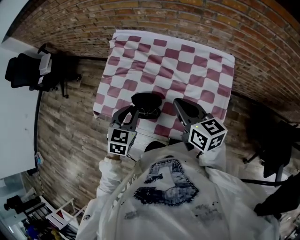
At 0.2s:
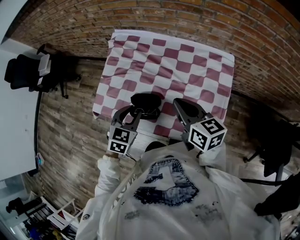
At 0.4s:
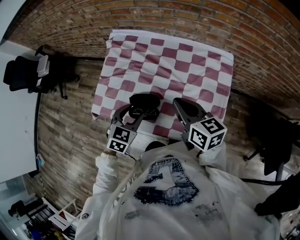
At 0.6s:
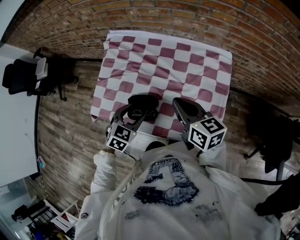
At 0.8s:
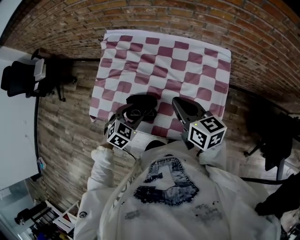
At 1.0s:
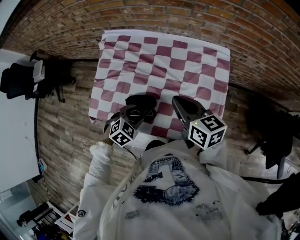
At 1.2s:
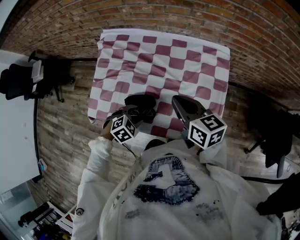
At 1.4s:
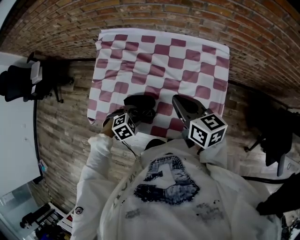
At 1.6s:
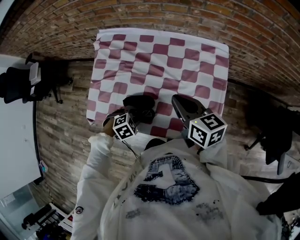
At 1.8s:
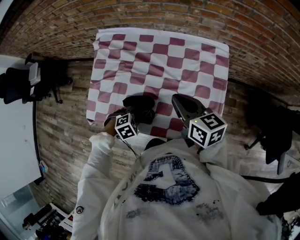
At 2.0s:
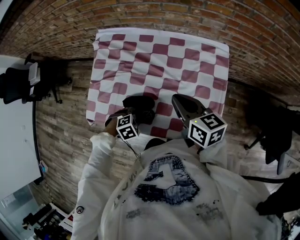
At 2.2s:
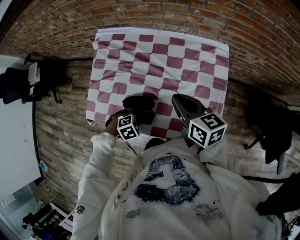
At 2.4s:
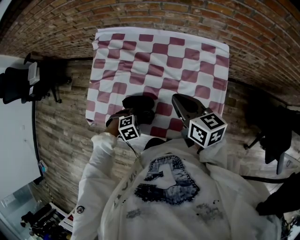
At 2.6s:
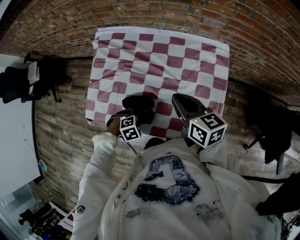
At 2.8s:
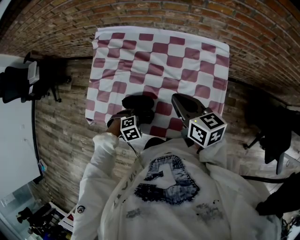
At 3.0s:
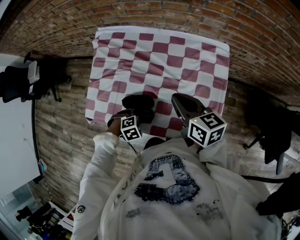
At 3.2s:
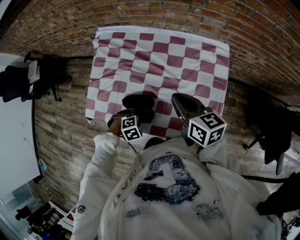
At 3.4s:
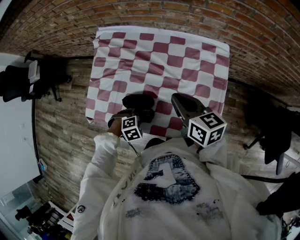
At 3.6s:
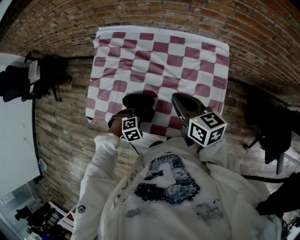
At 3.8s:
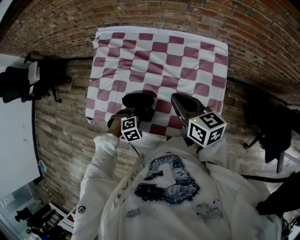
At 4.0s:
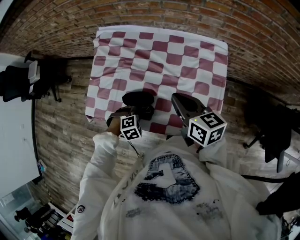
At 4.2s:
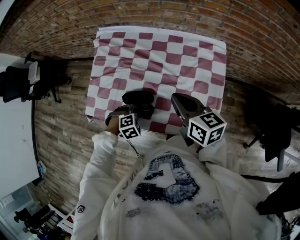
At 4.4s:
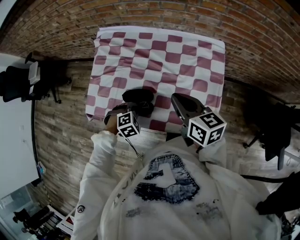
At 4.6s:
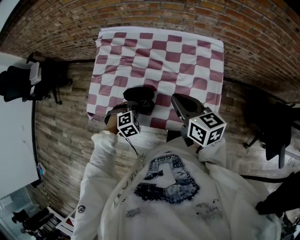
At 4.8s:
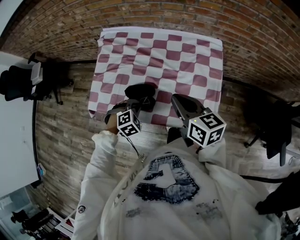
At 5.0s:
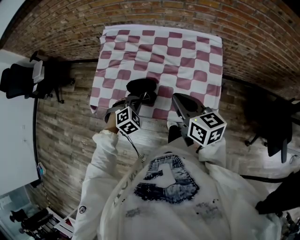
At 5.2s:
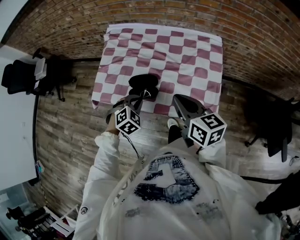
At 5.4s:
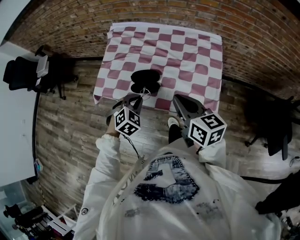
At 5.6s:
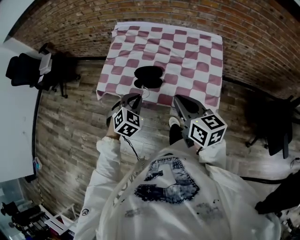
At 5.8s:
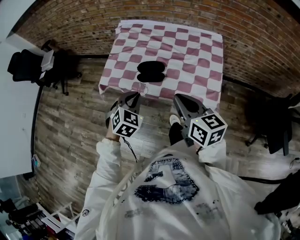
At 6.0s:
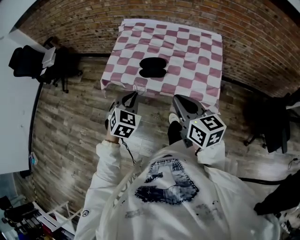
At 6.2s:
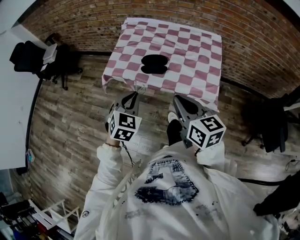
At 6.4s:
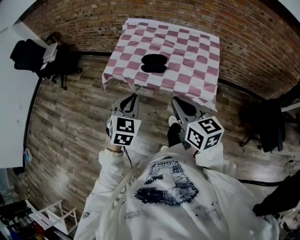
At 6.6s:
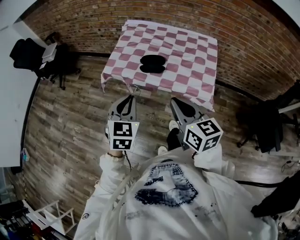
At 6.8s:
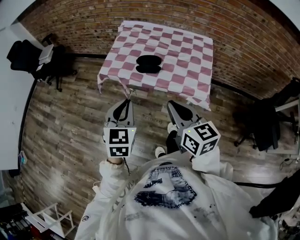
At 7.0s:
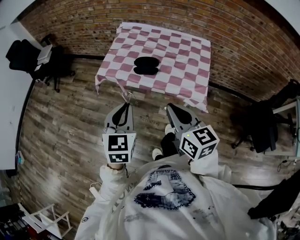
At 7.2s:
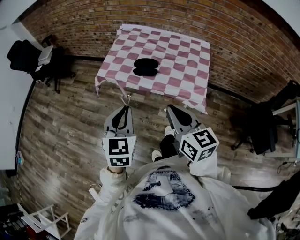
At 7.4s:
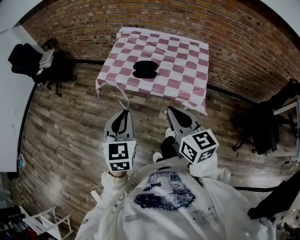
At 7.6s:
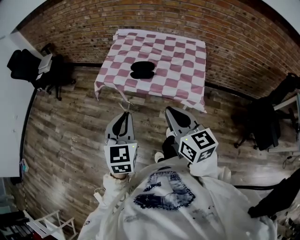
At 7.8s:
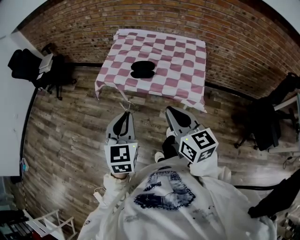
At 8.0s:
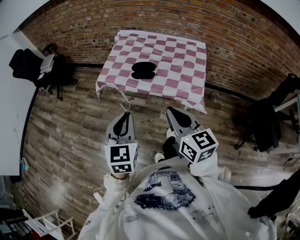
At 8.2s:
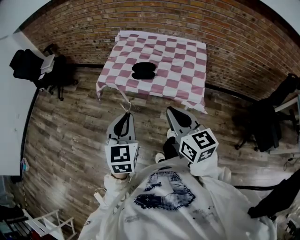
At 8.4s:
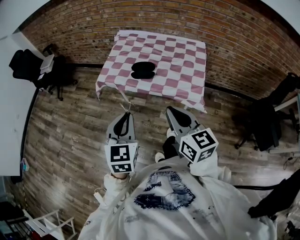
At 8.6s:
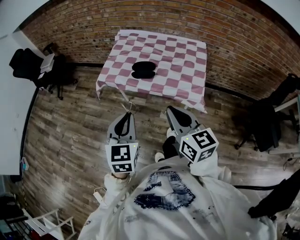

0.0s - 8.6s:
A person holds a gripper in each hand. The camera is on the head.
0.0s - 1.4s: The left gripper travels downward by some 15 cm, points its fingers roughly 30 degrees further downward, and opens its fingers.
1.4s - 2.8s: The left gripper closes.
2.8s - 4.4s: There are only small adjustments of the grippers.
4.4s - 5.8s: The right gripper shifts some 25 cm backward, while the left gripper is displaced upward and backward by some 25 cm, and tilts its fingers some 30 degrees upward.
5.8s - 7.2s: The left gripper heads backward and upward, covering approximately 20 cm, and swivels some 40 degrees. The right gripper shifts approximately 15 cm backward.
7.2s - 8.6s: The grippers stay close to where they were, moving slightly.

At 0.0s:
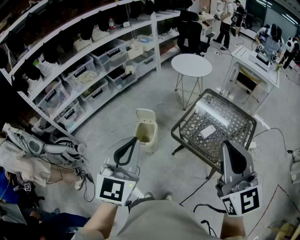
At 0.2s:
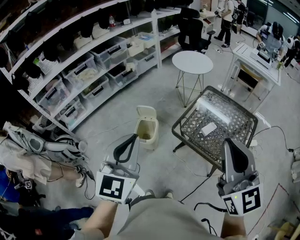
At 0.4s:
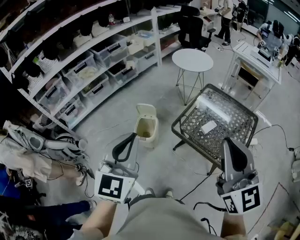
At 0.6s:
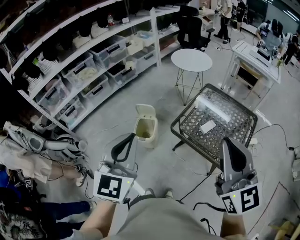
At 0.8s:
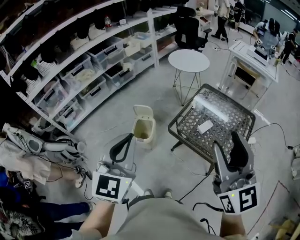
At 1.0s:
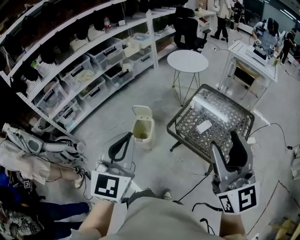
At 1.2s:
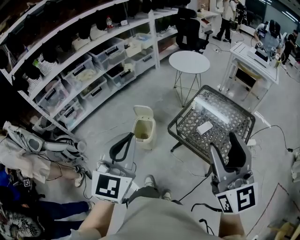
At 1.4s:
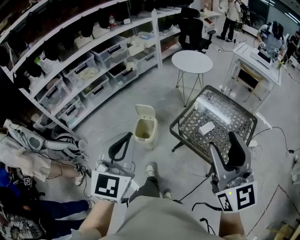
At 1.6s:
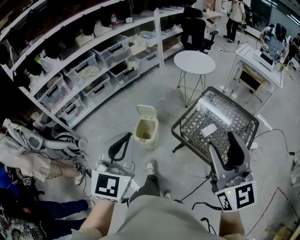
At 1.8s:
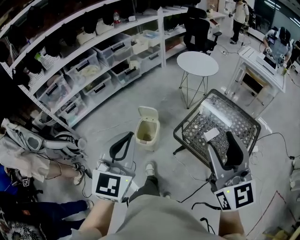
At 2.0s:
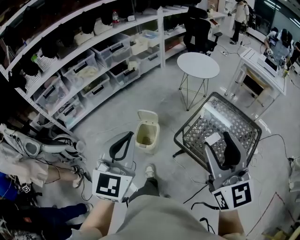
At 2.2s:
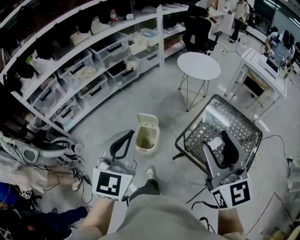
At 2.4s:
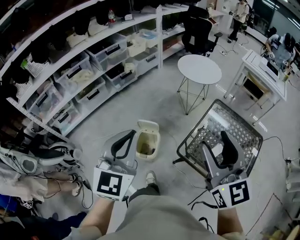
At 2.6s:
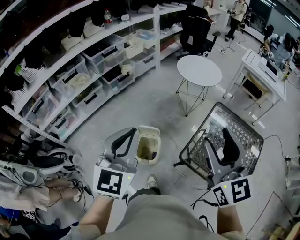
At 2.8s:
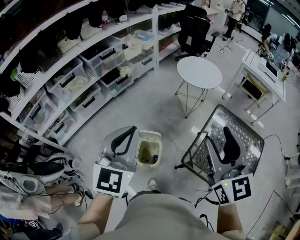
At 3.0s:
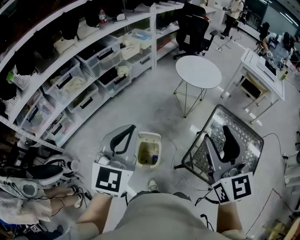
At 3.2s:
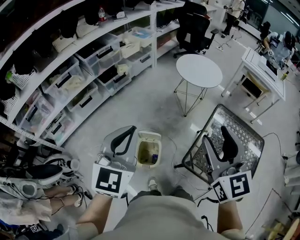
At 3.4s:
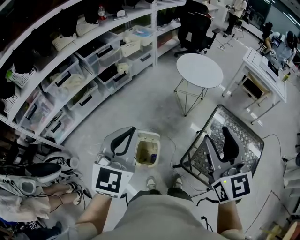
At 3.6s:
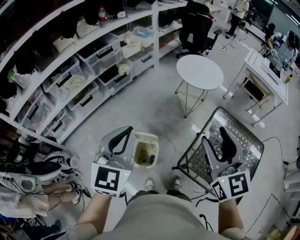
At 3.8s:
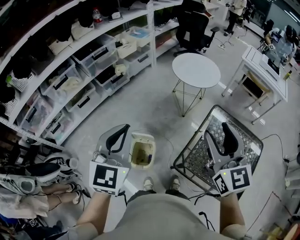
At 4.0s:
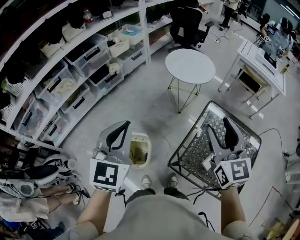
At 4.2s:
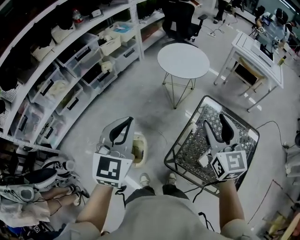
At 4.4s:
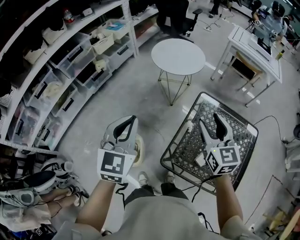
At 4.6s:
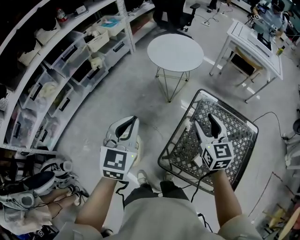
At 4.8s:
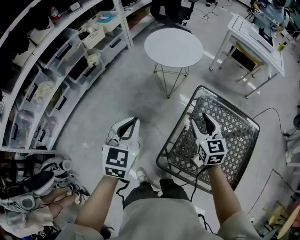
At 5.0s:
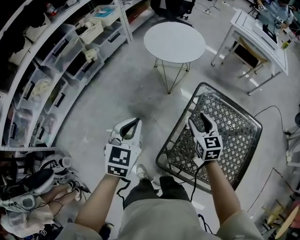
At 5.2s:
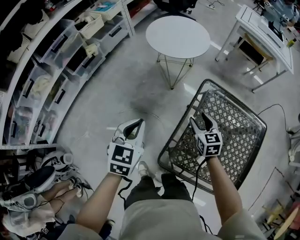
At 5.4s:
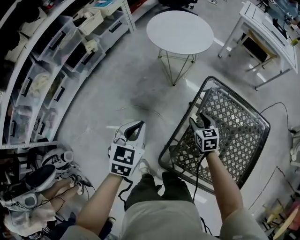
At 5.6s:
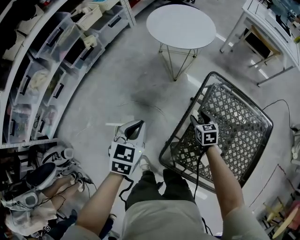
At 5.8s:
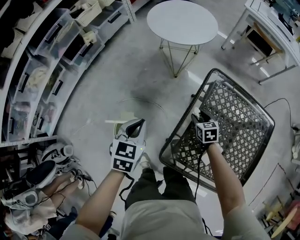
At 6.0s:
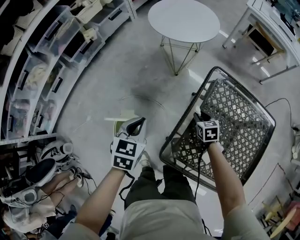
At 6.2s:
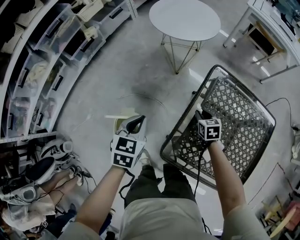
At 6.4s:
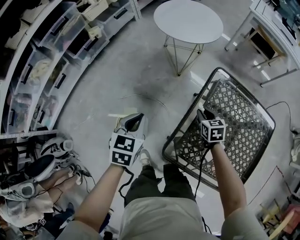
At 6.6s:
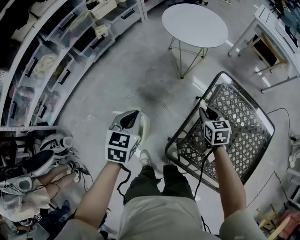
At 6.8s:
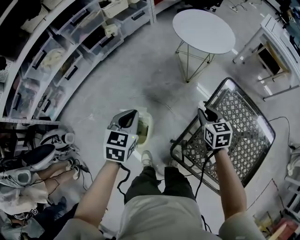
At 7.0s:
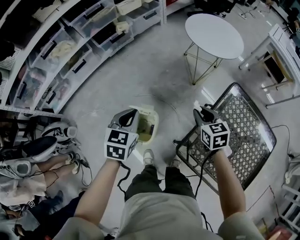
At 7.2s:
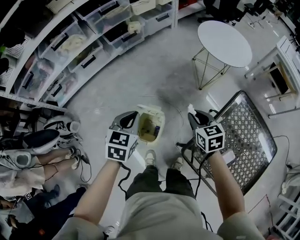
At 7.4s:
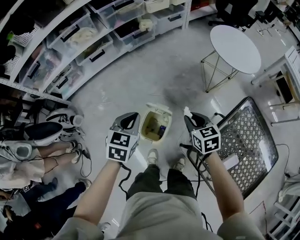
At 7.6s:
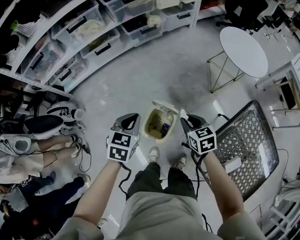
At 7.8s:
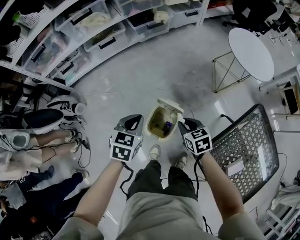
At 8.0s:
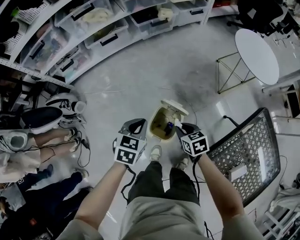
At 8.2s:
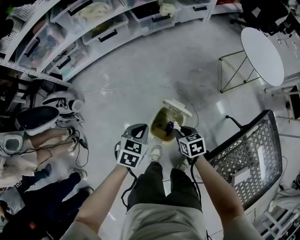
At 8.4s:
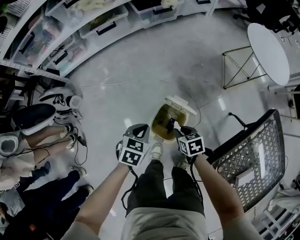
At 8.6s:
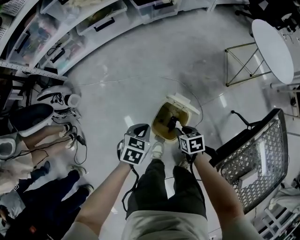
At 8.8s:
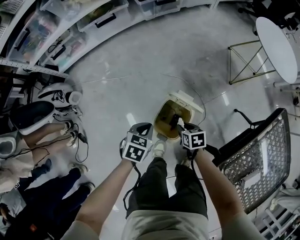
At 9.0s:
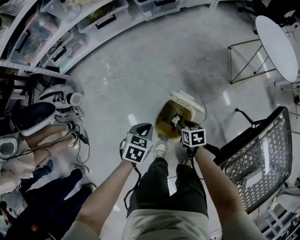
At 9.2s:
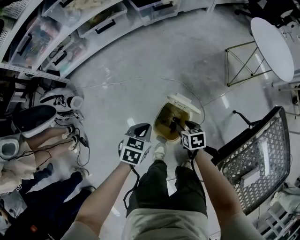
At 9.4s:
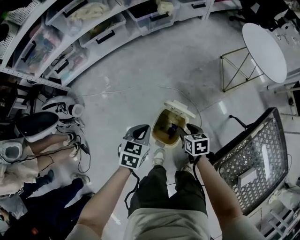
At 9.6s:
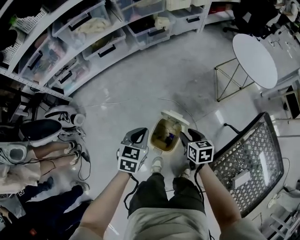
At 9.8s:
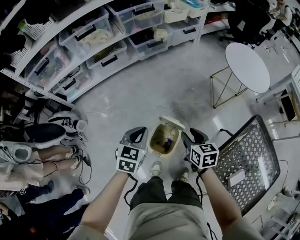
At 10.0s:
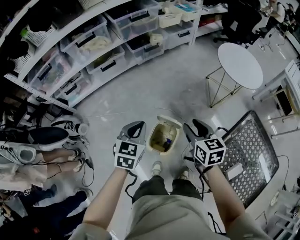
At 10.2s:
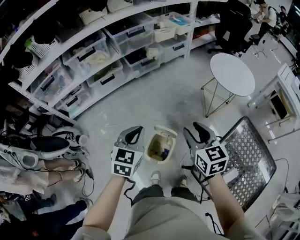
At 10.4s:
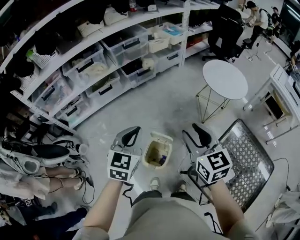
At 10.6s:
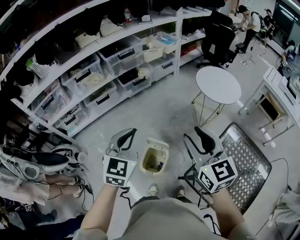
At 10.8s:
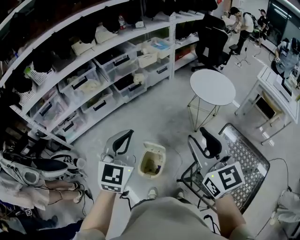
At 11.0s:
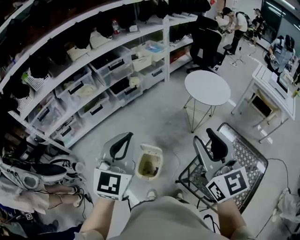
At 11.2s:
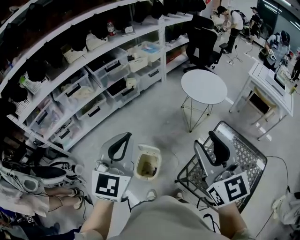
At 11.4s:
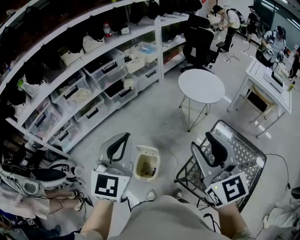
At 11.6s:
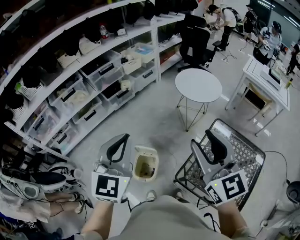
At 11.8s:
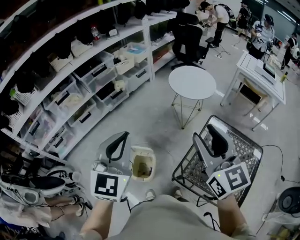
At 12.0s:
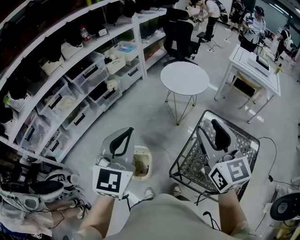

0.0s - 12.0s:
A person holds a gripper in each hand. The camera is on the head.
0.0s - 1.6s: The right gripper opens up.
1.6s - 3.0s: The left gripper moves forward, some 30 cm; the right gripper shifts some 35 cm forward and to the left.
3.0s - 4.4s: The left gripper goes approximately 20 cm to the right, forward and downward, while the right gripper shifts approximately 30 cm to the right, downward and forward.
4.4s - 6.0s: The left gripper moves downward, about 30 cm, and changes its angle by roughly 30 degrees; the right gripper moves downward, approximately 40 cm, and points its fingers roughly 40 degrees further downward.
6.0s - 7.6s: The right gripper shifts by some 40 cm, and changes its angle by some 40 degrees; the left gripper moves roughly 30 cm, and swivels about 20 degrees.
7.6s - 9.0s: The two grippers go about 30 cm downward. The right gripper rotates about 20 degrees.
9.0s - 10.4s: Both grippers travel together upward, approximately 50 cm. The left gripper angles its fingers upward, by some 30 degrees. The right gripper angles its fingers upward, by roughly 40 degrees.
10.4s - 12.0s: The right gripper heads to the right and upward, covering about 25 cm, and changes its angle by about 30 degrees; the left gripper shifts approximately 20 cm upward and to the right, and rotates approximately 20 degrees.

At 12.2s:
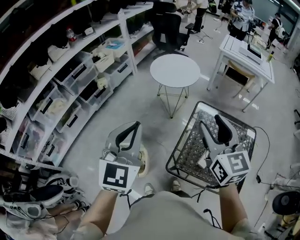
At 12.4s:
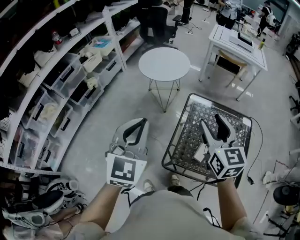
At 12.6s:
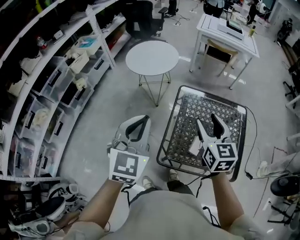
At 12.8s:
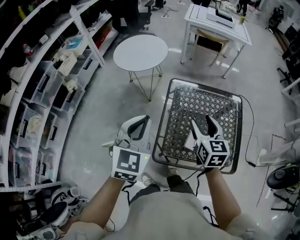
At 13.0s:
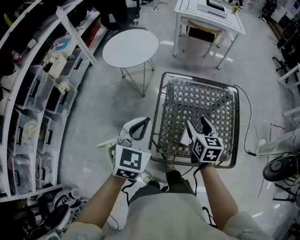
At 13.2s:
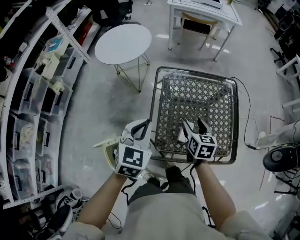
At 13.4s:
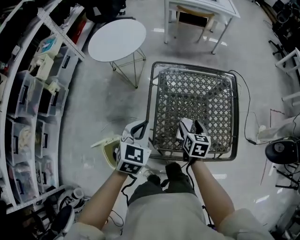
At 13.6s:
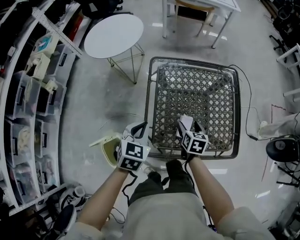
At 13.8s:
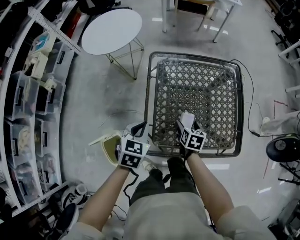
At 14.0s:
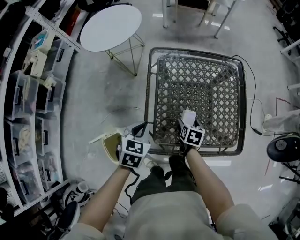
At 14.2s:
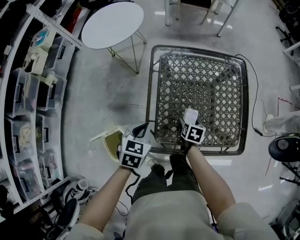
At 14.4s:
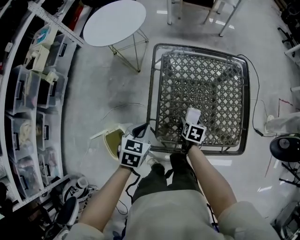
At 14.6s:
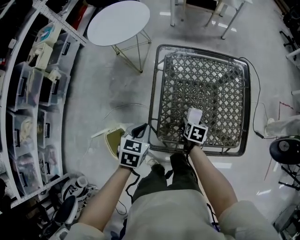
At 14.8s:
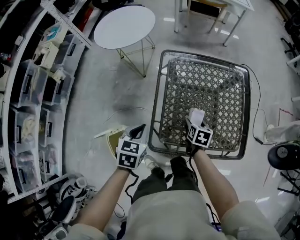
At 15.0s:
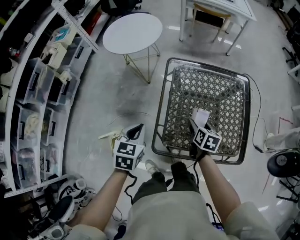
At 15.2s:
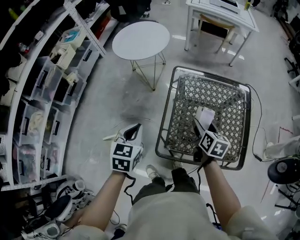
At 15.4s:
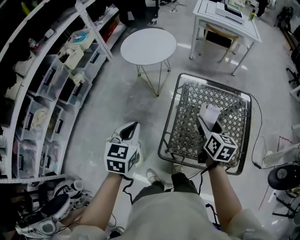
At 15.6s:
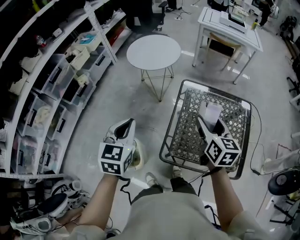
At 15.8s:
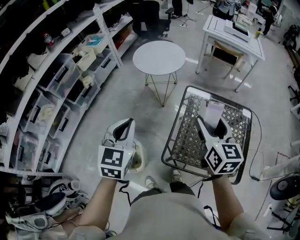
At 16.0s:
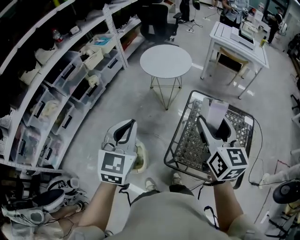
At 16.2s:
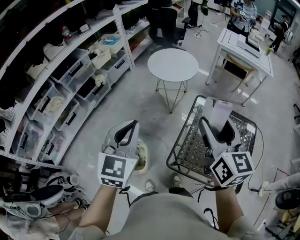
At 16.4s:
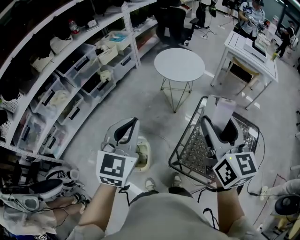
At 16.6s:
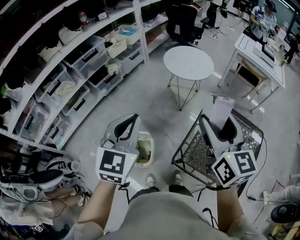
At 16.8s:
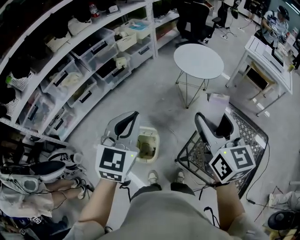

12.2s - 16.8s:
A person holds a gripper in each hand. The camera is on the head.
12.2s - 13.8s: The grippers both shift downward by approximately 40 cm. The right gripper points its fingers roughly 50 degrees further downward, and opens up; the left gripper points its fingers approximately 40 degrees further downward.
13.8s - 15.2s: The right gripper moves upward, approximately 15 cm, while the left gripper is displaced upward and to the left by some 15 cm.
15.2s - 16.8s: The grippers both shift upward by roughly 25 cm. The left gripper rotates roughly 30 degrees, while the right gripper swivels roughly 50 degrees.
